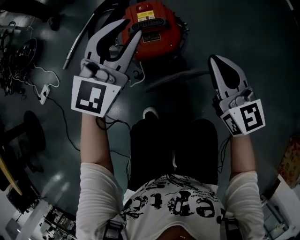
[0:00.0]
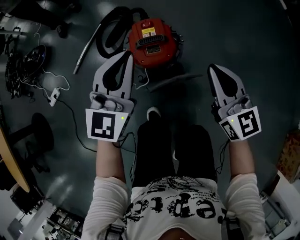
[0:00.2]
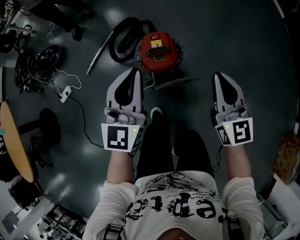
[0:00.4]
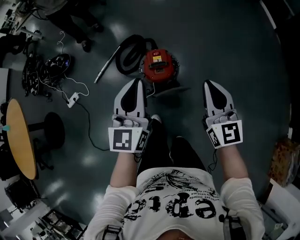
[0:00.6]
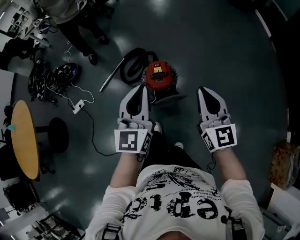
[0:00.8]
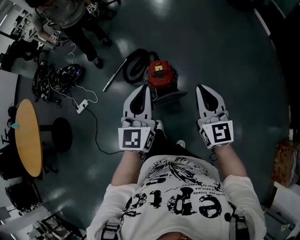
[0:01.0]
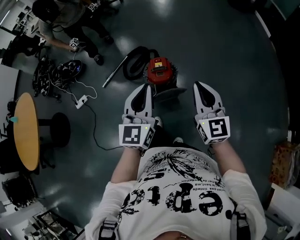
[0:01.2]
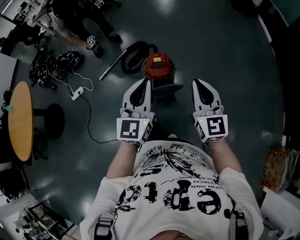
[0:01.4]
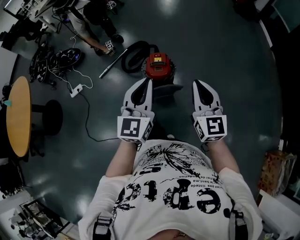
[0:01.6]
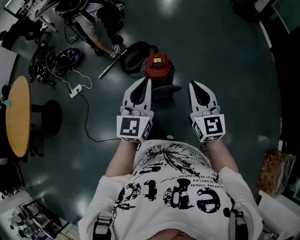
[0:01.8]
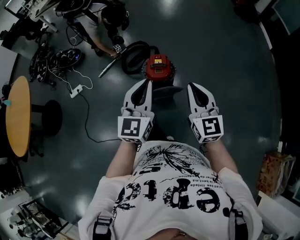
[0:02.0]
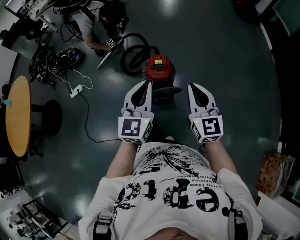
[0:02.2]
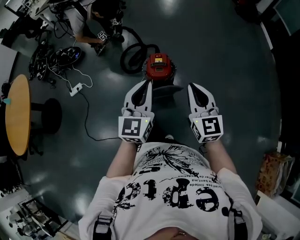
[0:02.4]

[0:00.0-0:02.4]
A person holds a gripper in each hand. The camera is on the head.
0:00.0 to 0:01.2: The left gripper is displaced upward and backward by approximately 50 cm, swivels approximately 30 degrees, and closes, while the right gripper shifts about 50 cm upward.
0:01.2 to 0:02.4: There are only small adjustments of the grippers.

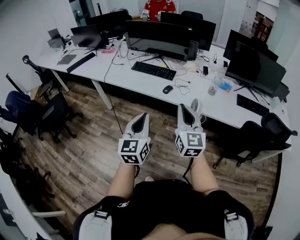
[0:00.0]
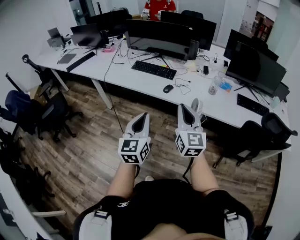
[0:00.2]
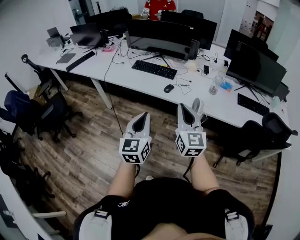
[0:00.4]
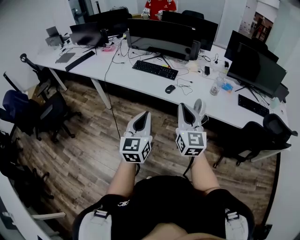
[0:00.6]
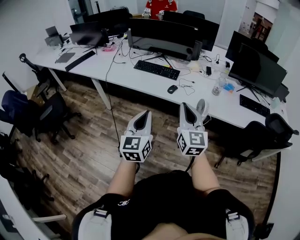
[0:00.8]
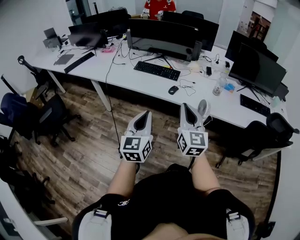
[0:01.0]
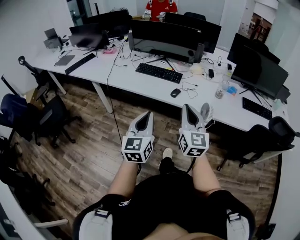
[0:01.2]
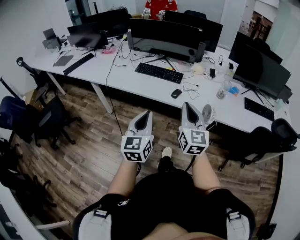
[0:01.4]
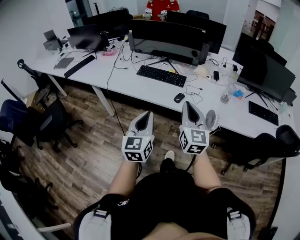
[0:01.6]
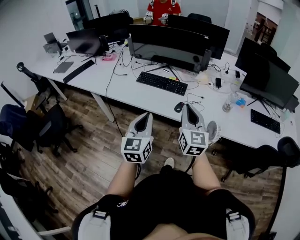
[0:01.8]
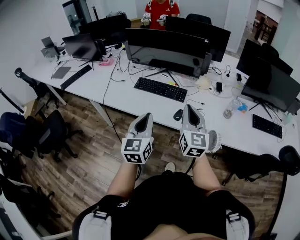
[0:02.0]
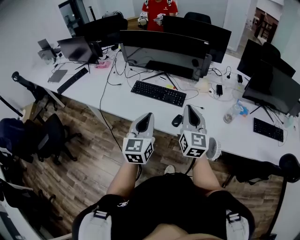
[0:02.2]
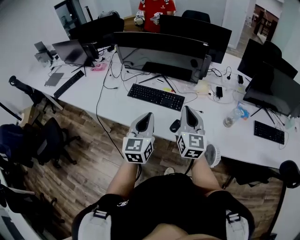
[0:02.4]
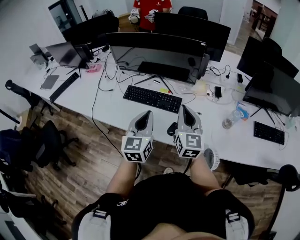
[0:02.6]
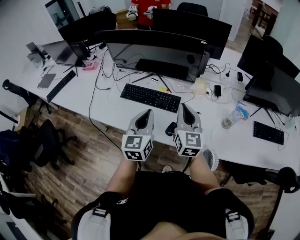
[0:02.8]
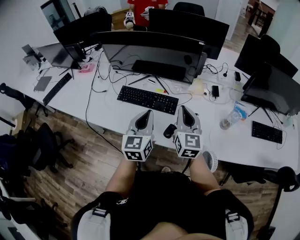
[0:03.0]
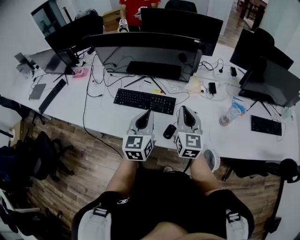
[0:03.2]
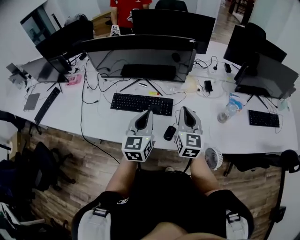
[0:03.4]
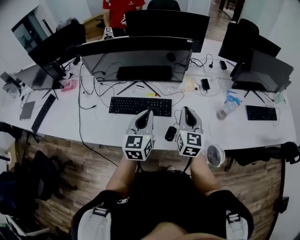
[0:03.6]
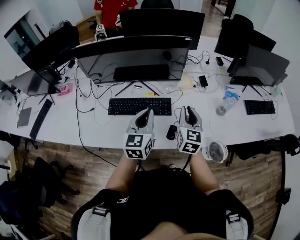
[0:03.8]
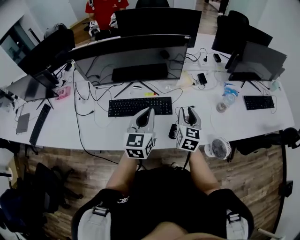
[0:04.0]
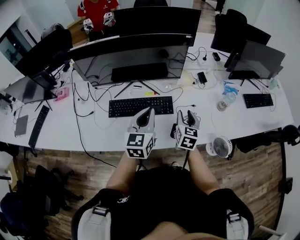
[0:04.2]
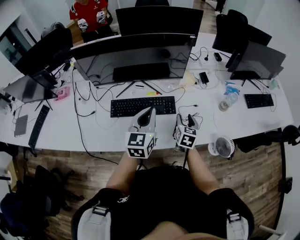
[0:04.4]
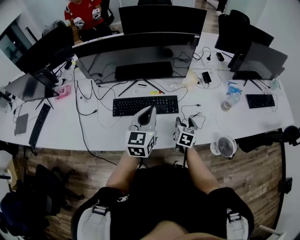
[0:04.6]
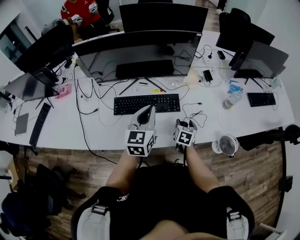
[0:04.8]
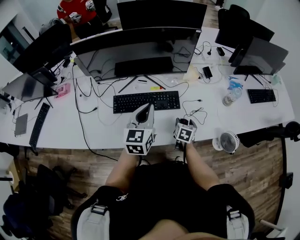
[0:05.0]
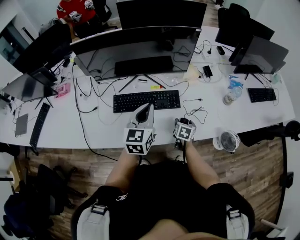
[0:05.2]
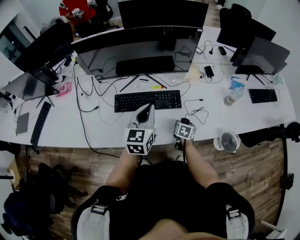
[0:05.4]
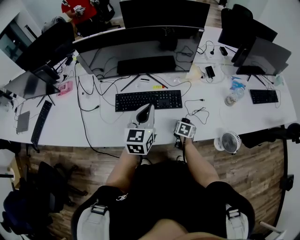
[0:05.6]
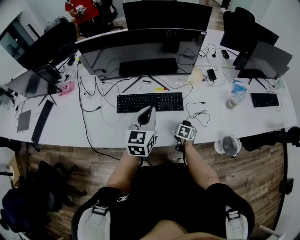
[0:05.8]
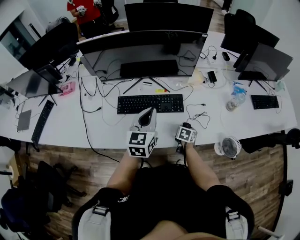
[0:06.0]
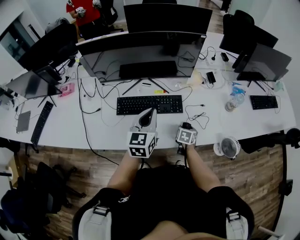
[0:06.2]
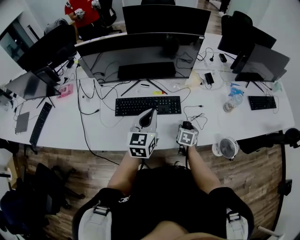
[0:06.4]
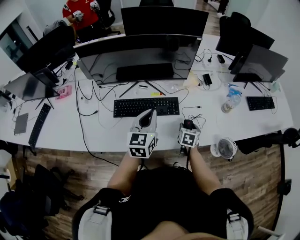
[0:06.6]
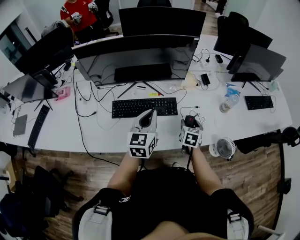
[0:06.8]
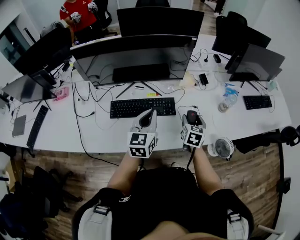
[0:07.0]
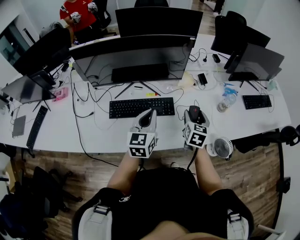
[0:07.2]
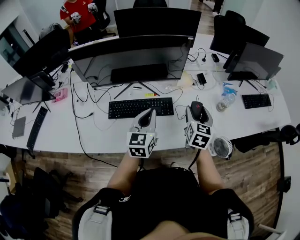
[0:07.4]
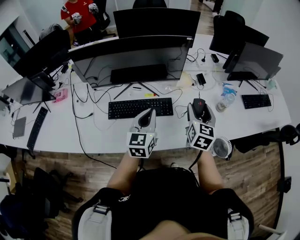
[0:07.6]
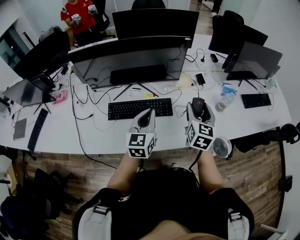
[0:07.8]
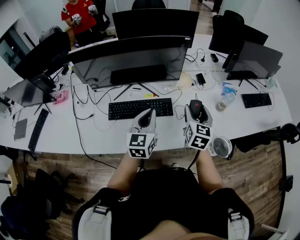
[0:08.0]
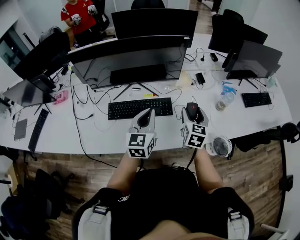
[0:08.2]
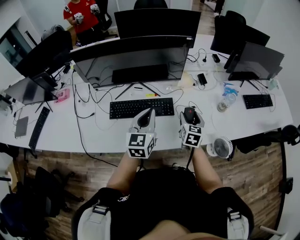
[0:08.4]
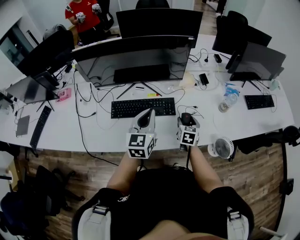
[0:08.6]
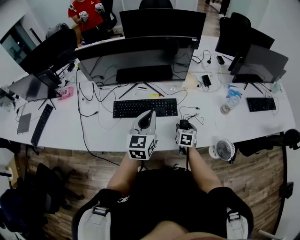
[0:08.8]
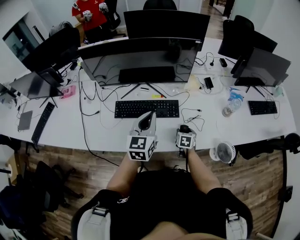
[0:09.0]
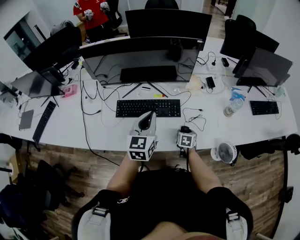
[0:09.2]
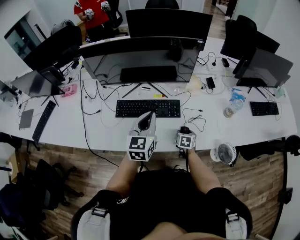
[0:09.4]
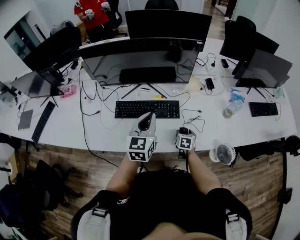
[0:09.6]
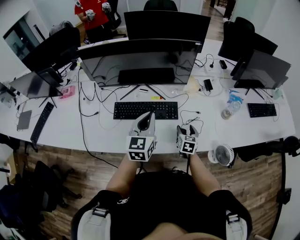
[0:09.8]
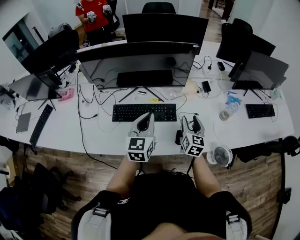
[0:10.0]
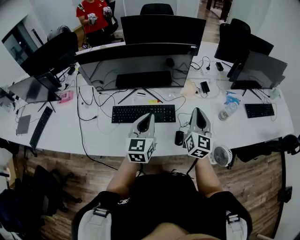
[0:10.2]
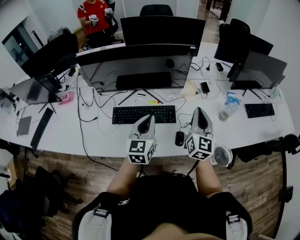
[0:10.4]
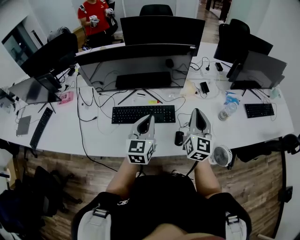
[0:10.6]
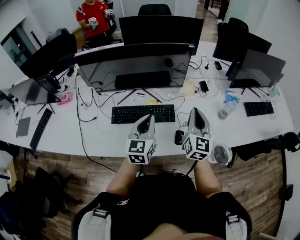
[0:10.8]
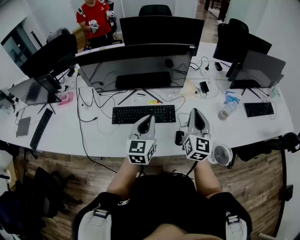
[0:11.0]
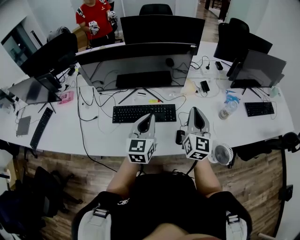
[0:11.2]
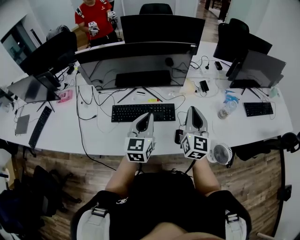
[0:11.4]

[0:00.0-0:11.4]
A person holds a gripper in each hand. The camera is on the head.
0:00.0 to 0:01.4: The grippers both shift to the left and forward by roughly 10 cm.
0:01.4 to 0:02.8: Both grippers travel together forward, roughly 35 cm.
0:02.8 to 0:04.2: The left gripper shifts by some 10 cm, and swivels approximately 20 degrees. Meanwhile the right gripper travels downward by approximately 15 cm, turns by approximately 40 degrees, and opens its fingers.
0:04.2 to 0:05.6: The right gripper heads downward, covering about 25 cm, tips its fingers downward by roughly 40 degrees, and opens, while the left gripper moves to the left, about 5 cm.
0:05.6 to 0:07.2: The right gripper shifts roughly 25 cm upward, and tilts its fingers approximately 30 degrees upward.
0:07.2 to 0:08.6: The right gripper moves downward, about 10 cm.
0:08.6 to 0:10.0: The right gripper shifts some 10 cm upward, and changes its angle by about 20 degrees.
0:10.0 to 0:11.4: The right gripper moves upward, roughly 15 cm, and closes.

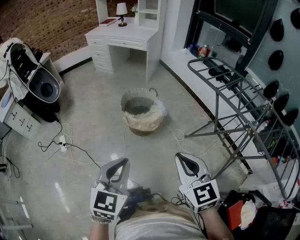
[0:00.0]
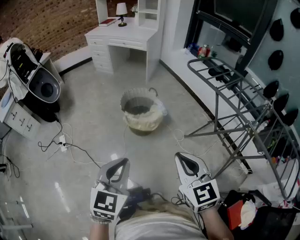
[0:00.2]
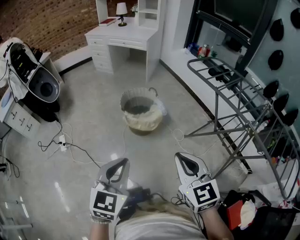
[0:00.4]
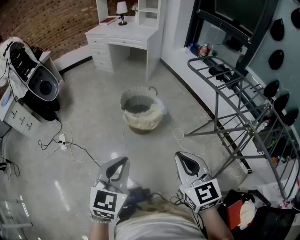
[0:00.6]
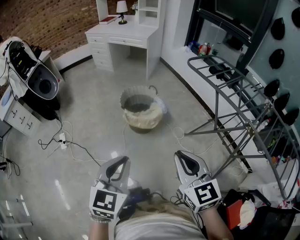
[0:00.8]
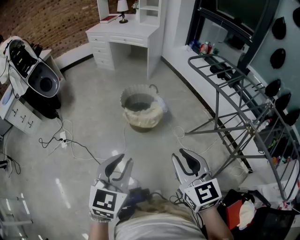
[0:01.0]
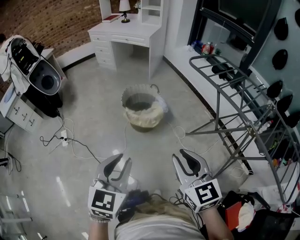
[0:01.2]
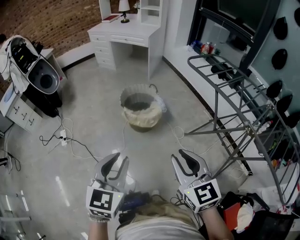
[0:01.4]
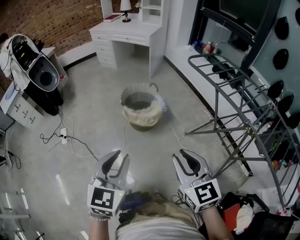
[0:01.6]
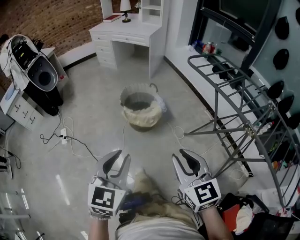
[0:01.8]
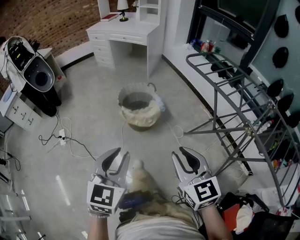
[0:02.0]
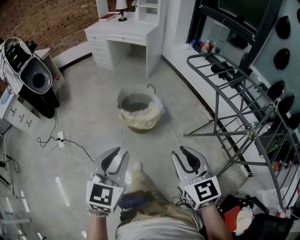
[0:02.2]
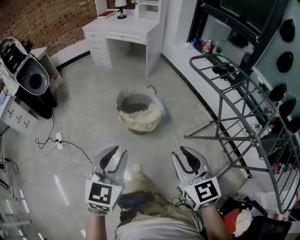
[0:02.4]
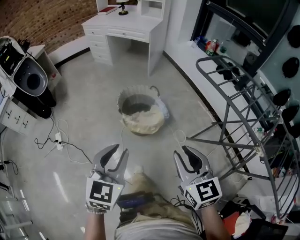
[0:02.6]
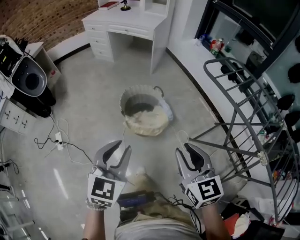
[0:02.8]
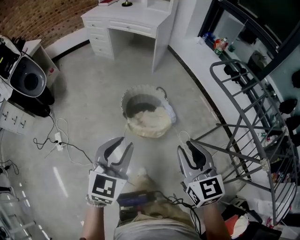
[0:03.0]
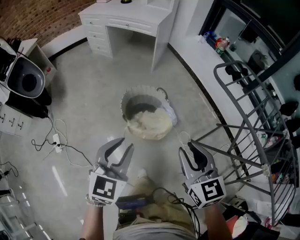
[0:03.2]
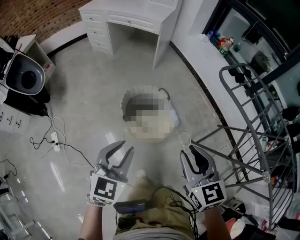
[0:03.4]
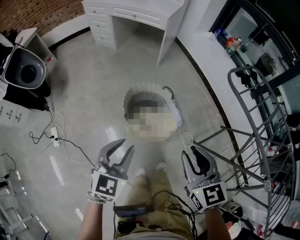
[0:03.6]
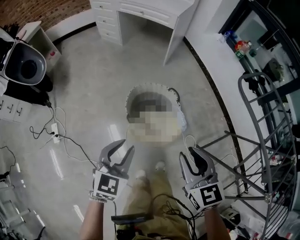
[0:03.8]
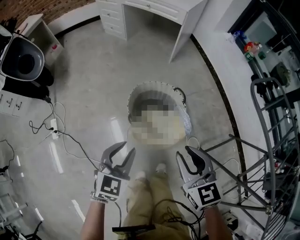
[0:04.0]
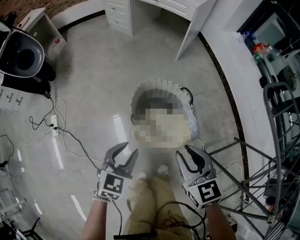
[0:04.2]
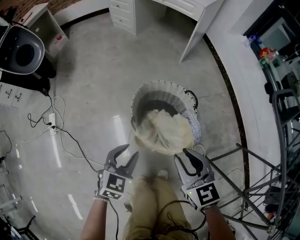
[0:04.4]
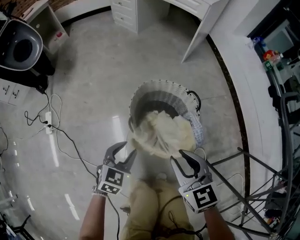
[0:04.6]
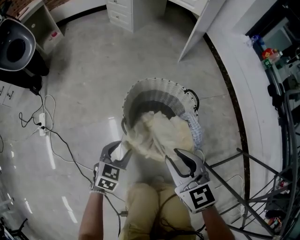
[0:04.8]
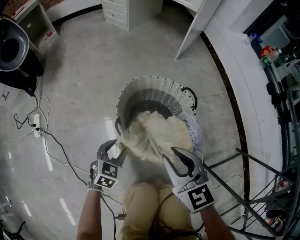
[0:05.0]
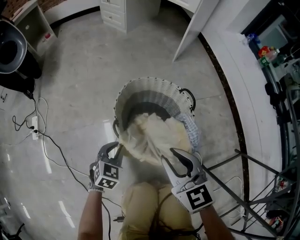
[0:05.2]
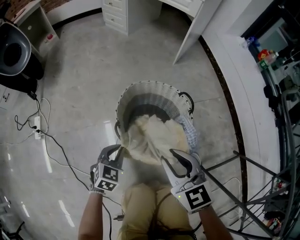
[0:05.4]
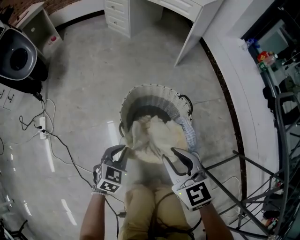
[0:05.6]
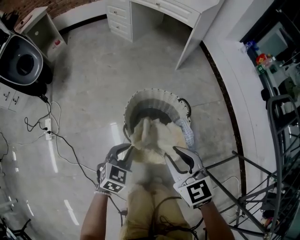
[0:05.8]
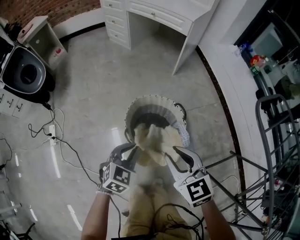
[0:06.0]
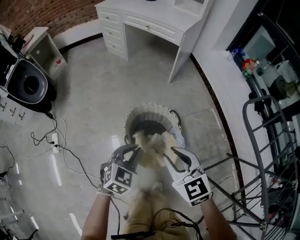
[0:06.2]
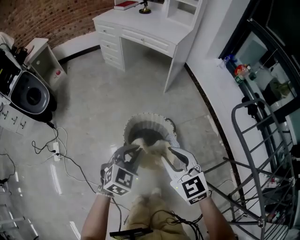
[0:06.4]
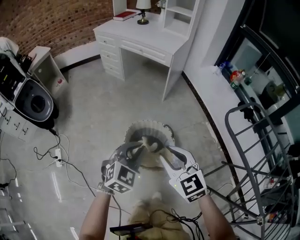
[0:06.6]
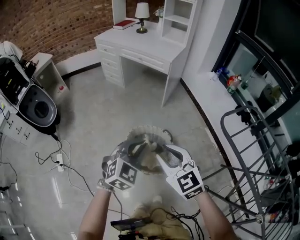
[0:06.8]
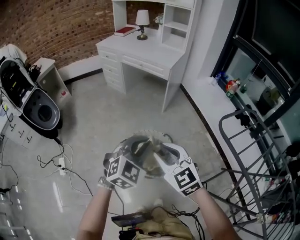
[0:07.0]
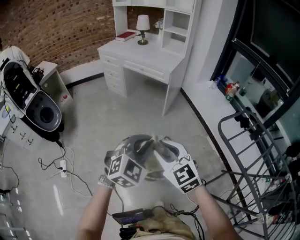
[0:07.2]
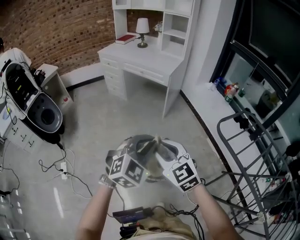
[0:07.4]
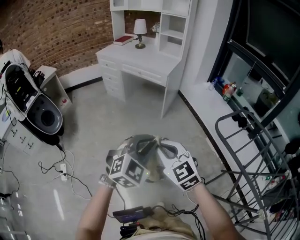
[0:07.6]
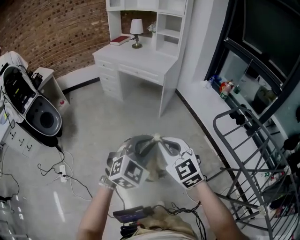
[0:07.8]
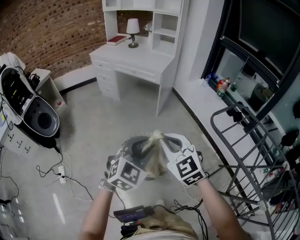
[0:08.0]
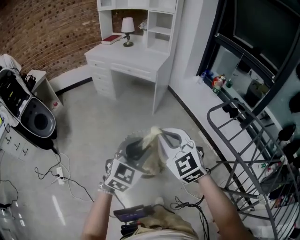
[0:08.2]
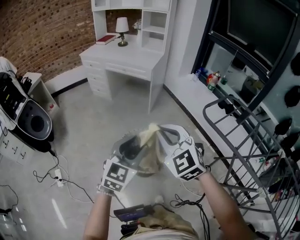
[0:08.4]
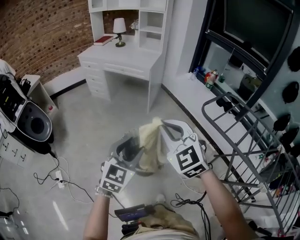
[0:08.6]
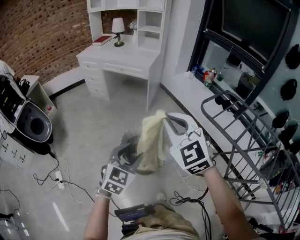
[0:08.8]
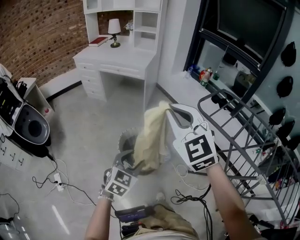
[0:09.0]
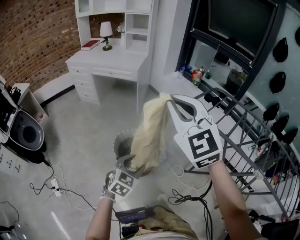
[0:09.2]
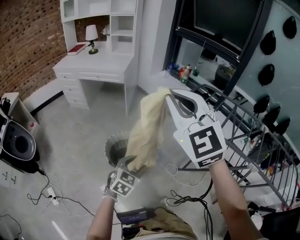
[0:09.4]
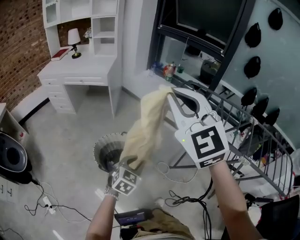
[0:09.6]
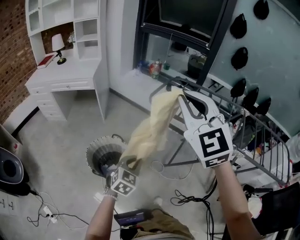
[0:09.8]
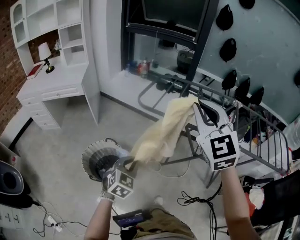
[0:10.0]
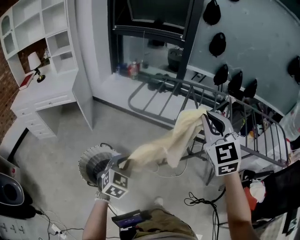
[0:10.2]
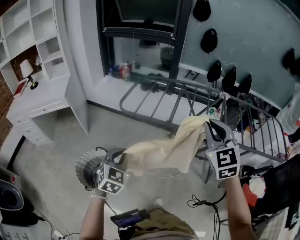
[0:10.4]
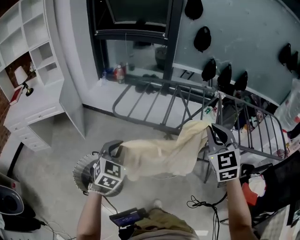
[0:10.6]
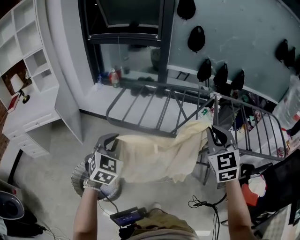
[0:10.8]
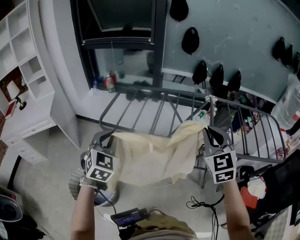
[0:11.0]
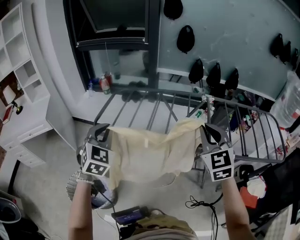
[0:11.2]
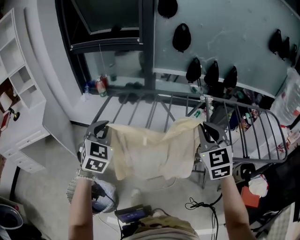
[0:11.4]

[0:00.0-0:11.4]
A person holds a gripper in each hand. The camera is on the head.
0:00.0 to 0:01.4: The left gripper opens.
0:01.4 to 0:02.8: The two grippers go some 25 cm forward.
0:02.8 to 0:04.2: The left gripper shifts some 35 cm downward and forward; the right gripper is displaced forward and downward by roughly 35 cm.
0:04.2 to 0:05.6: The left gripper shifts roughly 15 cm downward, and closes its fingers; the right gripper is displaced downward by about 10 cm.
0:05.6 to 0:07.2: The grippers both shift upward by some 40 cm. The right gripper rotates some 20 degrees. Meanwhile the left gripper swivels approximately 40 degrees.
0:07.2 to 0:08.6: The left gripper travels backward by roughly 10 cm, swivels some 20 degrees, and opens. Meanwhile the right gripper moves upward, about 10 cm, turns by about 20 degrees, and closes.
0:08.6 to 0:10.0: The left gripper moves about 25 cm, turns by approximately 40 degrees, and closes up; the right gripper changes place by approximately 35 cm, and turns by approximately 50 degrees.
0:10.0 to 0:11.4: The left gripper shifts about 35 cm forward and upward, and rotates about 20 degrees, while the right gripper moves to the right and forward, about 35 cm, and turns by some 30 degrees.
